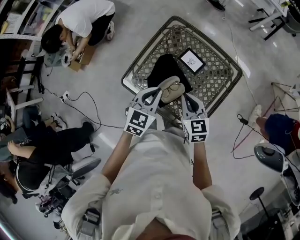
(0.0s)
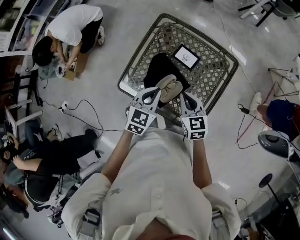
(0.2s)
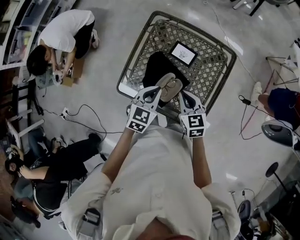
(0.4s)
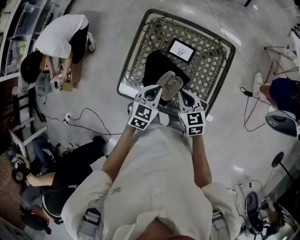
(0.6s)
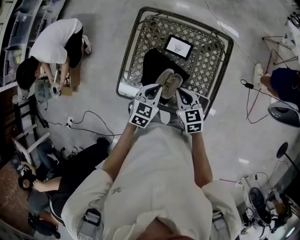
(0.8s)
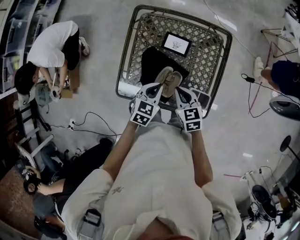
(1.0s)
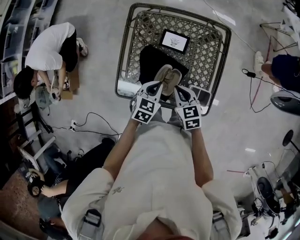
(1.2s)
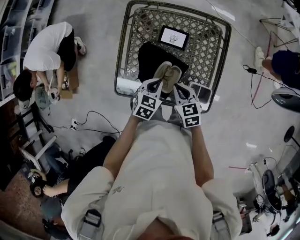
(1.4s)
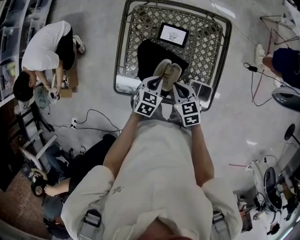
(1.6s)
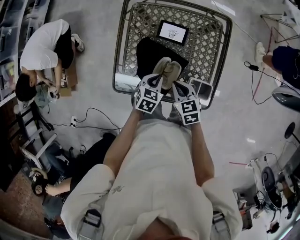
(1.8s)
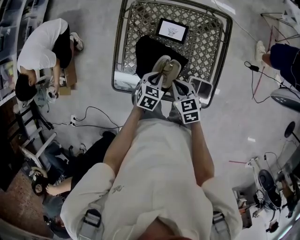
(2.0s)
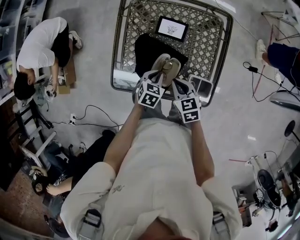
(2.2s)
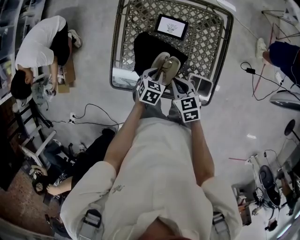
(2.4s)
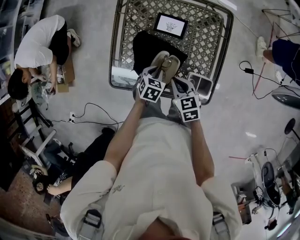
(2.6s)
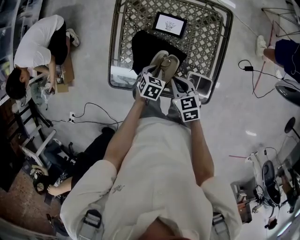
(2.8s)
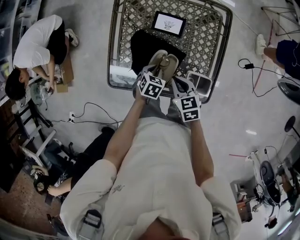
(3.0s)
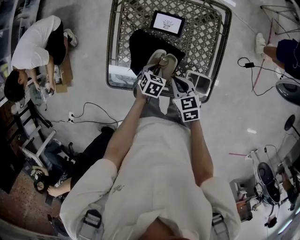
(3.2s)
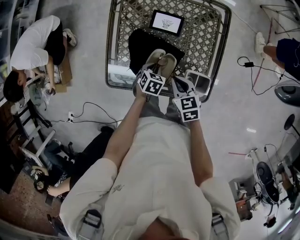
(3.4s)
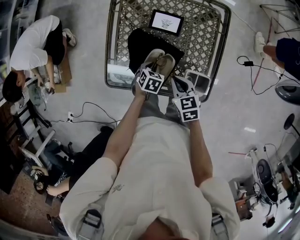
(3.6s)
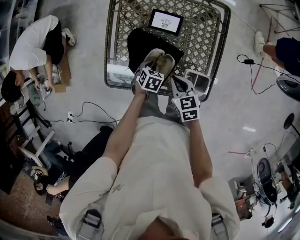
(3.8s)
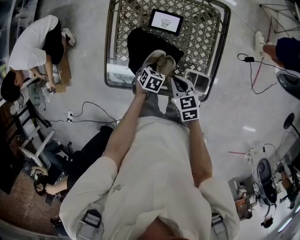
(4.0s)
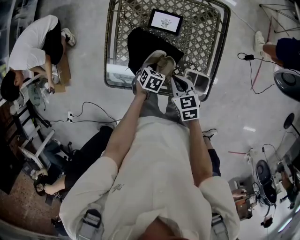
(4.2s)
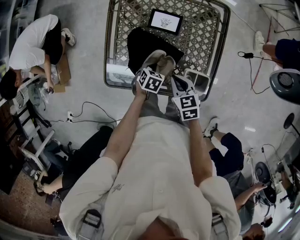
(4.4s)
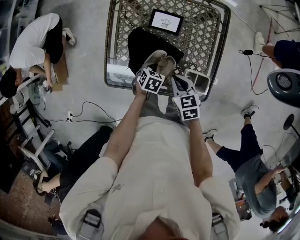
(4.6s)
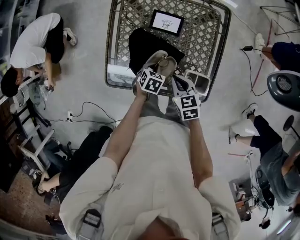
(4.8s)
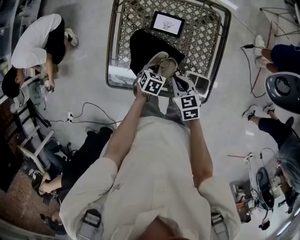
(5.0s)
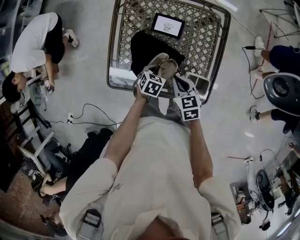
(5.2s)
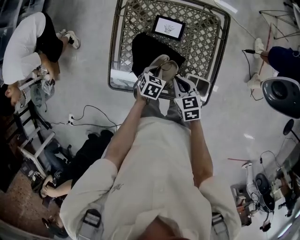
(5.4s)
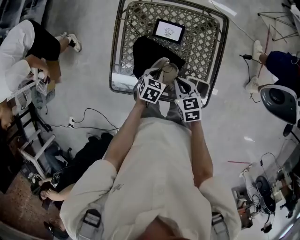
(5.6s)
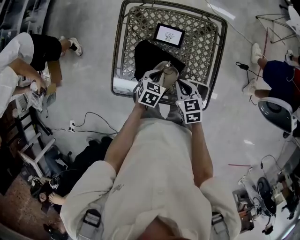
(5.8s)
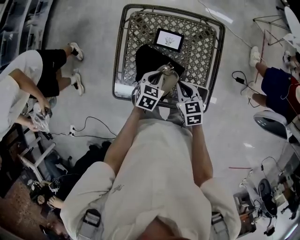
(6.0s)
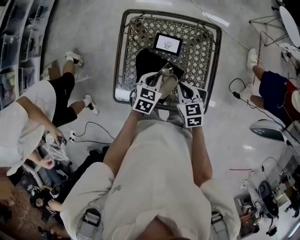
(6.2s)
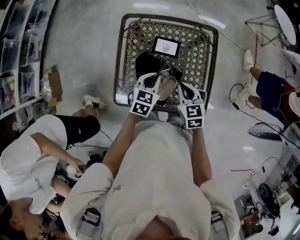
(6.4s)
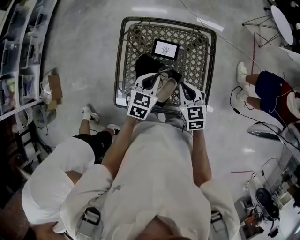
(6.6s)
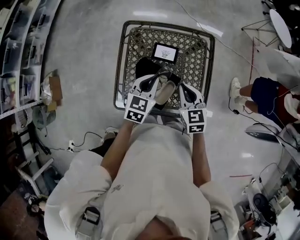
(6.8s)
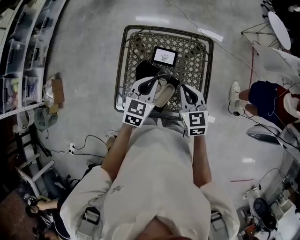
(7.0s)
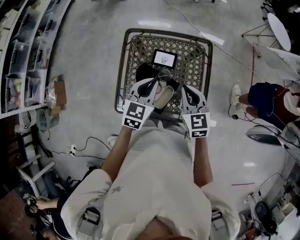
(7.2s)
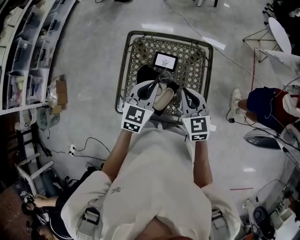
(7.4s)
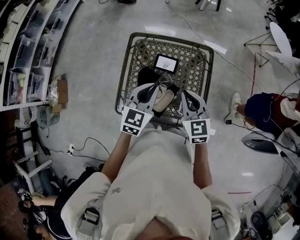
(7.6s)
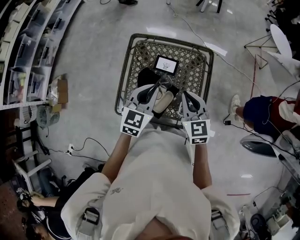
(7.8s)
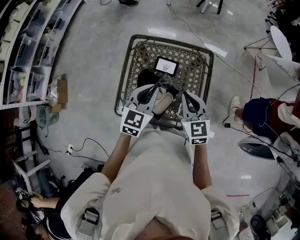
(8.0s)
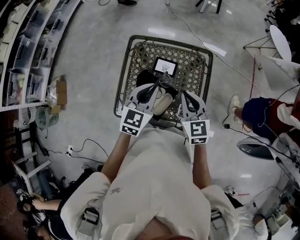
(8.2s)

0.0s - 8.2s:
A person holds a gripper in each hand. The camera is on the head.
0.0s - 1.6s: Both grippers travel together downward, roughly 15 cm. The left gripper rotates about 30 degrees, while the right gripper swivels approximately 20 degrees.
1.6s - 3.2s: The left gripper is displaced downward by about 10 cm.
3.2s - 5.0s: There are only small adjustments of the grippers.
5.0s - 6.6s: The right gripper goes approximately 15 cm upward and forward; the left gripper moves upward, about 20 cm, and tips its fingers upward by approximately 30 degrees.
6.6s - 8.2s: The grippers both shift upward by roughly 10 cm.

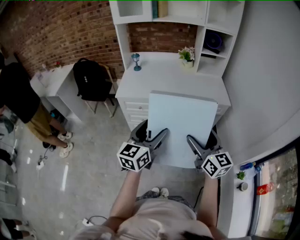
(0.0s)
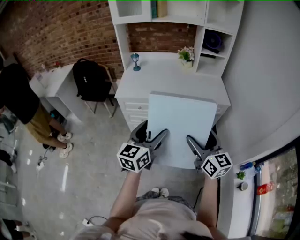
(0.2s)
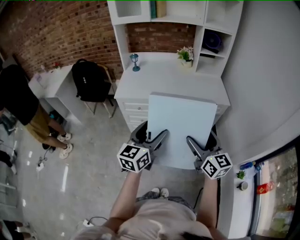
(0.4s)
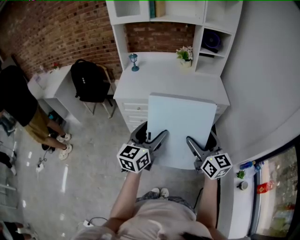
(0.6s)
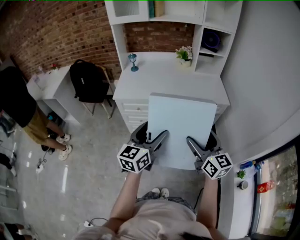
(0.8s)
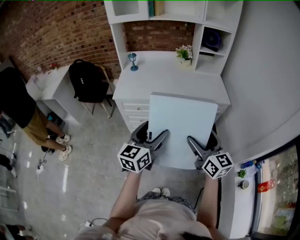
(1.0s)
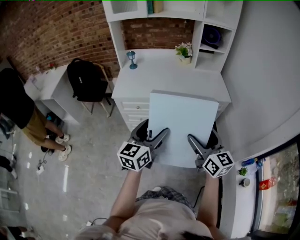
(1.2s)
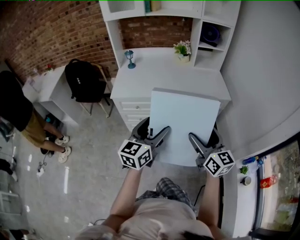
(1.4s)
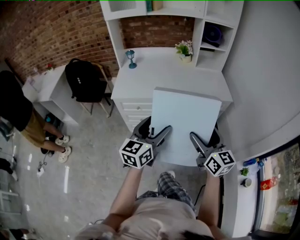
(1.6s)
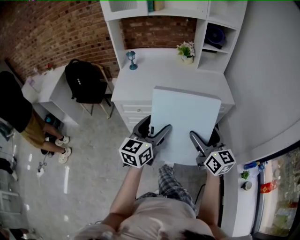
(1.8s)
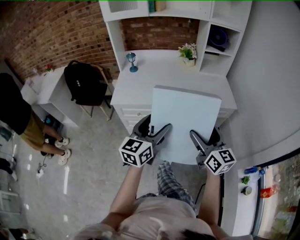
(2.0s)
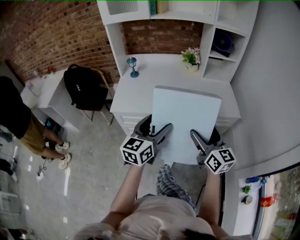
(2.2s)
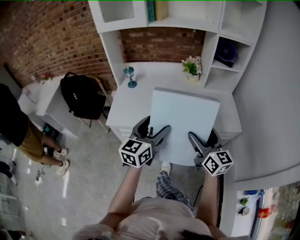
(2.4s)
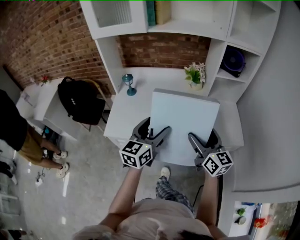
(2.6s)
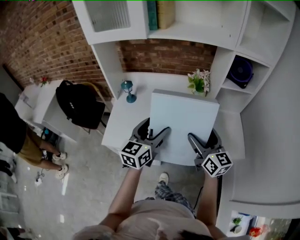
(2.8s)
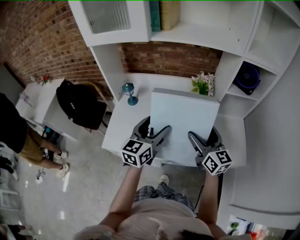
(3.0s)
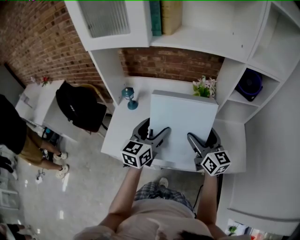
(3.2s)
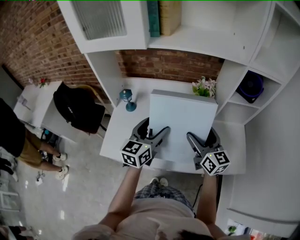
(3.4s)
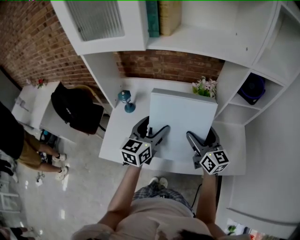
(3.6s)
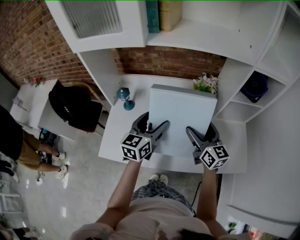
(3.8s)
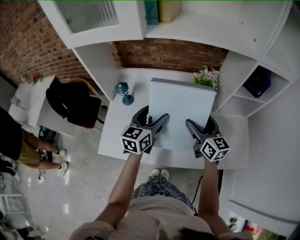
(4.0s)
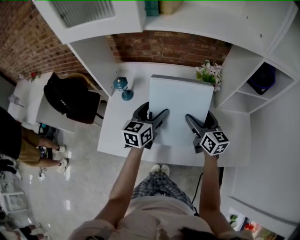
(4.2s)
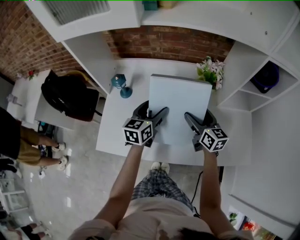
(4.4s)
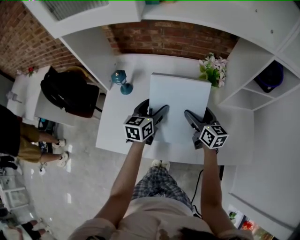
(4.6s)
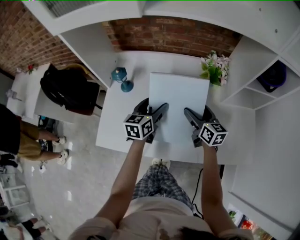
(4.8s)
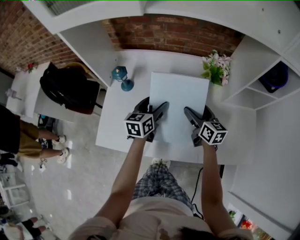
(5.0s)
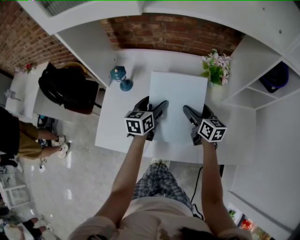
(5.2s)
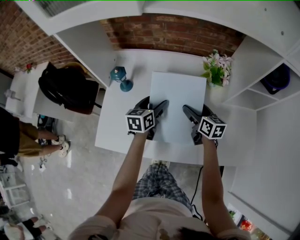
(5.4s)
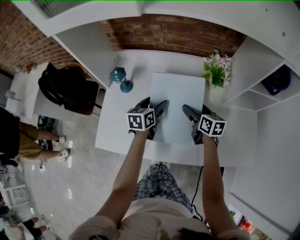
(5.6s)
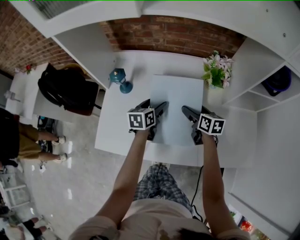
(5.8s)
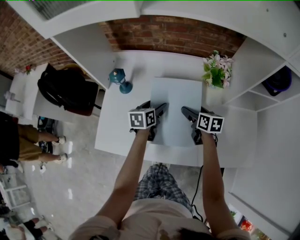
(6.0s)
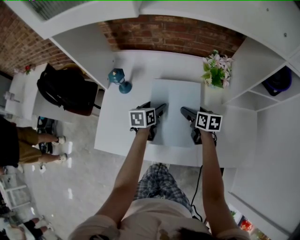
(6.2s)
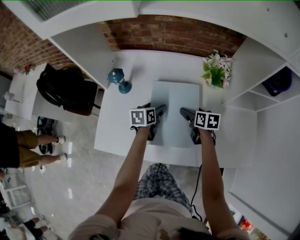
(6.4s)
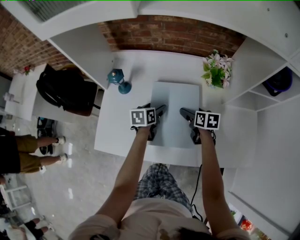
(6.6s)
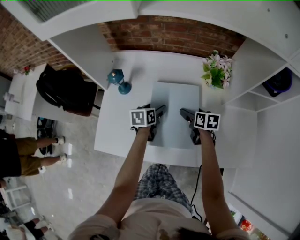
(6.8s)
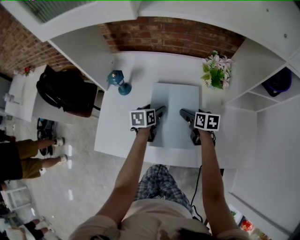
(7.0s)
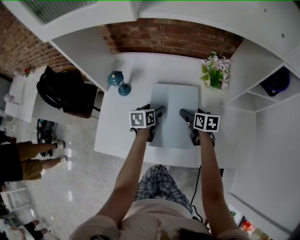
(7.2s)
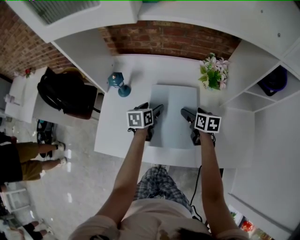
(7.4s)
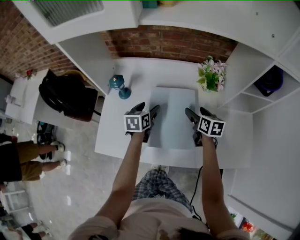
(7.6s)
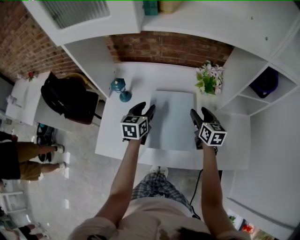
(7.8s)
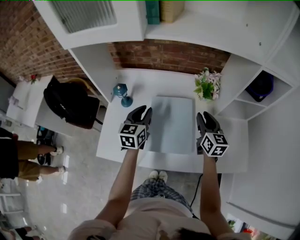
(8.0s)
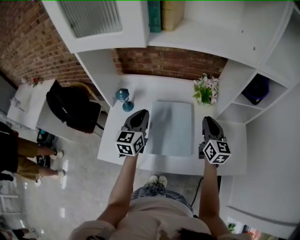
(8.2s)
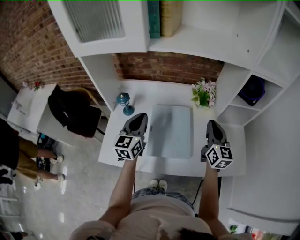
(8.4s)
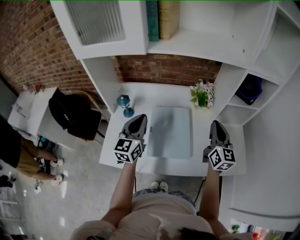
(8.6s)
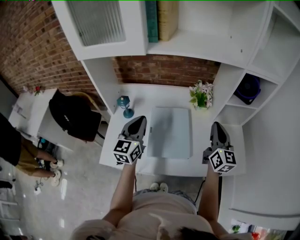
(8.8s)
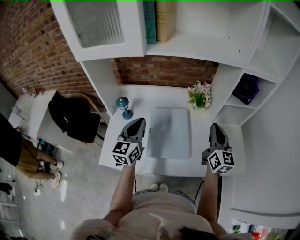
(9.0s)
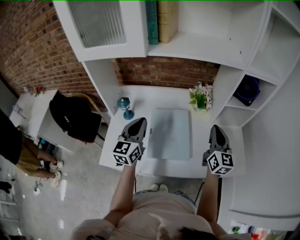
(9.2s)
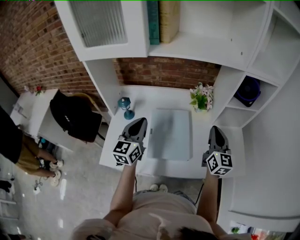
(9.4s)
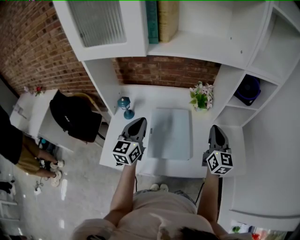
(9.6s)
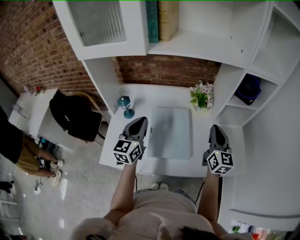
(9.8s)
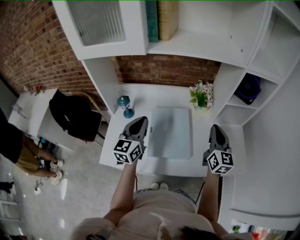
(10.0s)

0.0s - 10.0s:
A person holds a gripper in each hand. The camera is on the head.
0.0s - 1.4s: There are only small adjustments of the grippers.
1.4s - 2.8s: The two grippers travel together, forward, about 50 cm.
2.8s - 4.2s: The two grippers go approximately 25 cm forward and downward.
4.2s - 5.8s: Both grippers move downward and forward, roughly 15 cm. The left gripper rotates roughly 20 degrees. The right gripper turns by roughly 30 degrees.
5.8s - 7.2s: The grippers stay close to where they were, moving slightly.
7.2s - 8.6s: Both grippers travel together upward, about 25 cm. The left gripper angles its fingers upward, by about 40 degrees, and closes its fingers, while the right gripper angles its fingers upward, by about 40 degrees, and closes up.
8.6s - 10.0s: The grippers make only small movements.

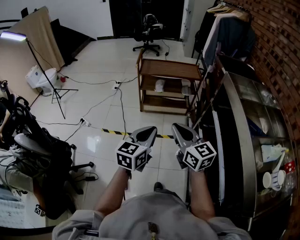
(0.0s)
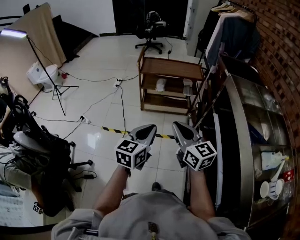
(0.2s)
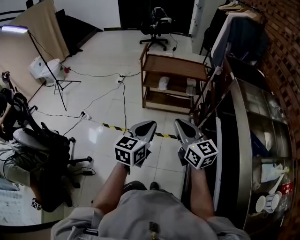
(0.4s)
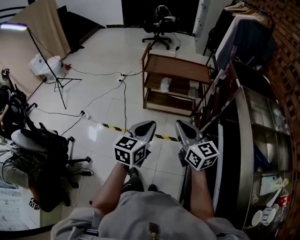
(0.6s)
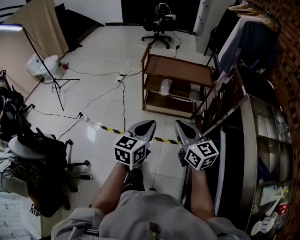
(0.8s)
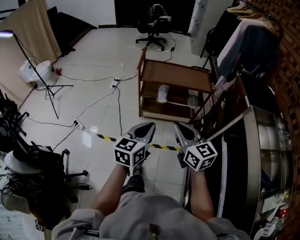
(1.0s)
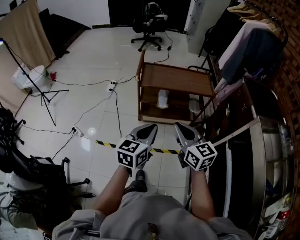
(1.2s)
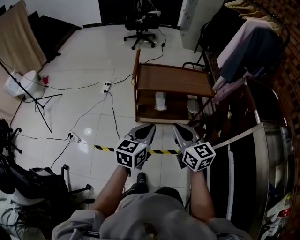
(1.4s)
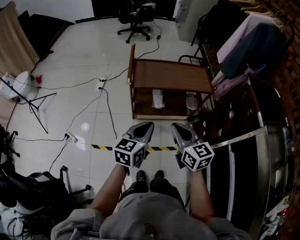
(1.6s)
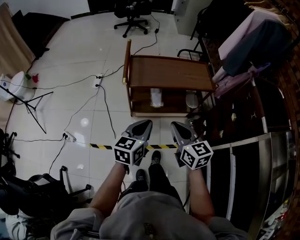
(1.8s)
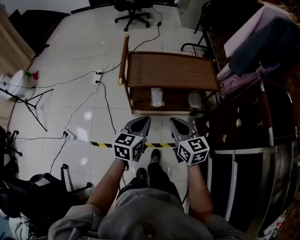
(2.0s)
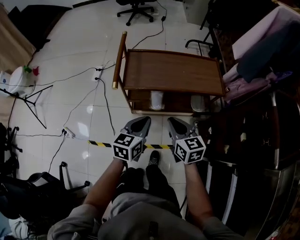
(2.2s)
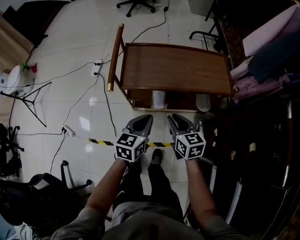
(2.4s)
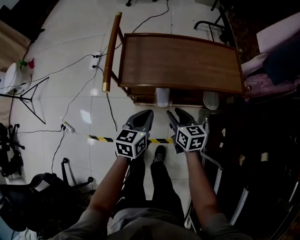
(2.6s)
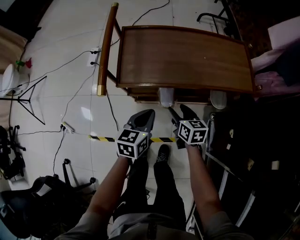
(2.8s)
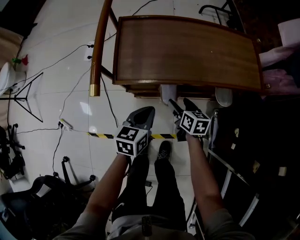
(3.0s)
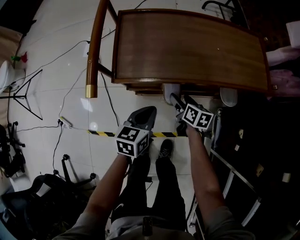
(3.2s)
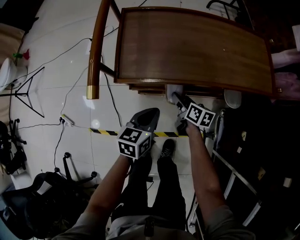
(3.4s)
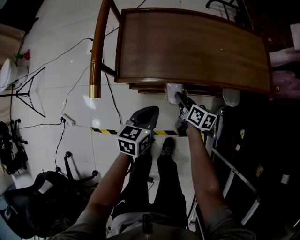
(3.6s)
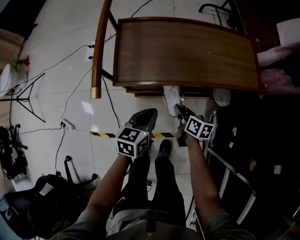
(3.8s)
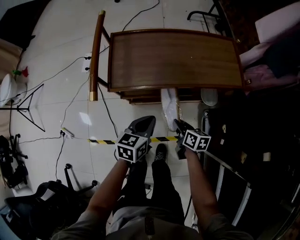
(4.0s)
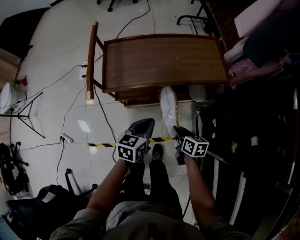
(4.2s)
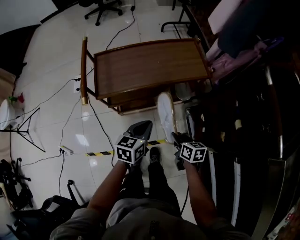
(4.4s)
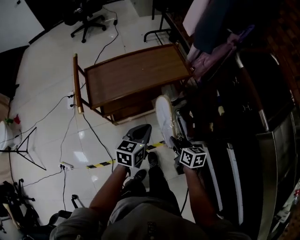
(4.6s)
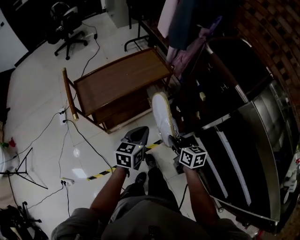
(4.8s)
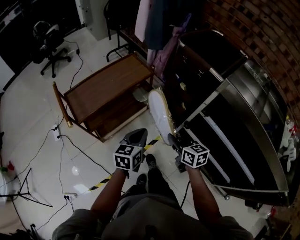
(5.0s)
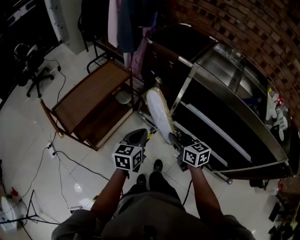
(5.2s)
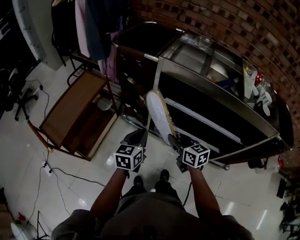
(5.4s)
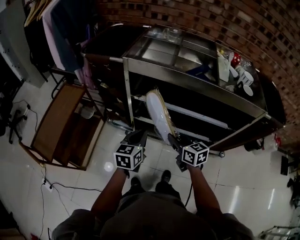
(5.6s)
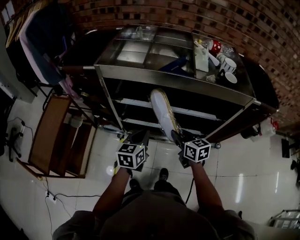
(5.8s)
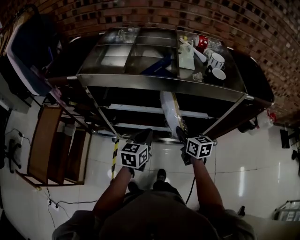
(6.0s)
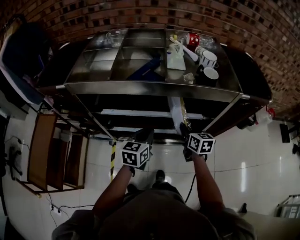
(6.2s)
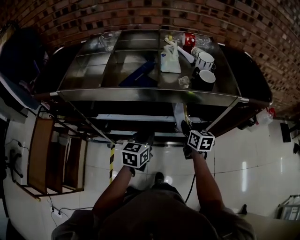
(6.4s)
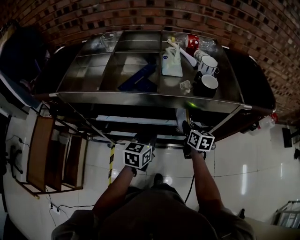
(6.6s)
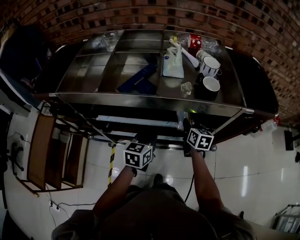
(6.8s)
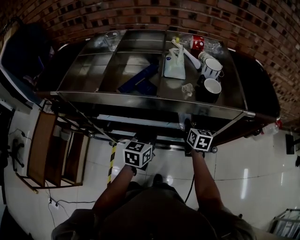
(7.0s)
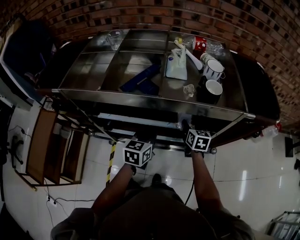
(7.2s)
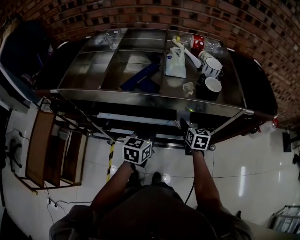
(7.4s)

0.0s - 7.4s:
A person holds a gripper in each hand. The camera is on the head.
0.0s - 1.4s: Both grippers move forward, about 40 cm.
1.4s - 3.0s: The grippers both shift downward and forward by about 50 cm. The right gripper turns by some 40 degrees, and opens its fingers; the left gripper turns by roughly 20 degrees.
3.0s - 4.4s: The left gripper goes roughly 20 cm upward, to the right and backward. The right gripper moves backward, upward and to the right, about 25 cm, and closes its fingers.
4.4s - 6.0s: The pair of grippers is taken about 60 cm. The right gripper rotates roughly 70 degrees; the left gripper swivels roughly 70 degrees.
6.0s - 7.4s: The two grippers go about 15 cm forward and to the right. The right gripper rotates roughly 20 degrees, and opens up.
